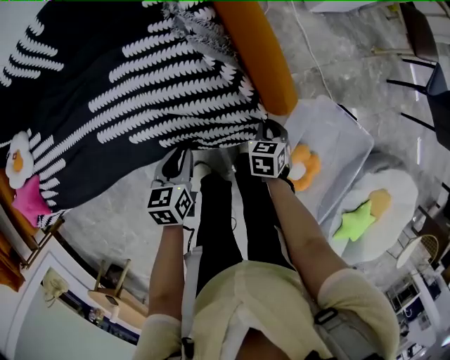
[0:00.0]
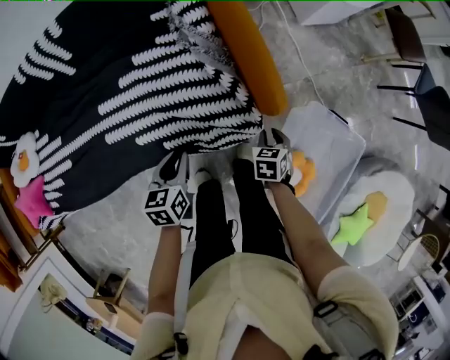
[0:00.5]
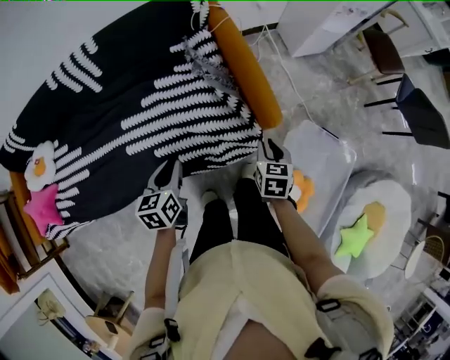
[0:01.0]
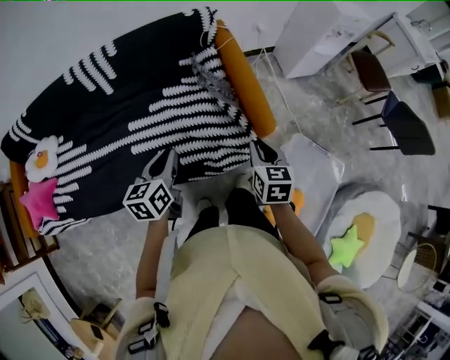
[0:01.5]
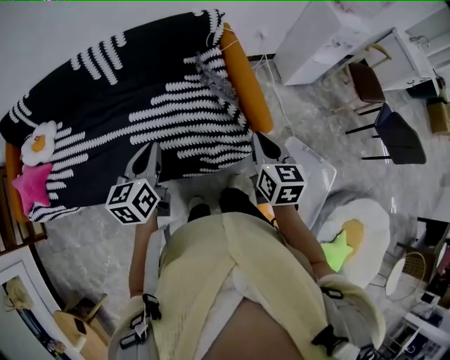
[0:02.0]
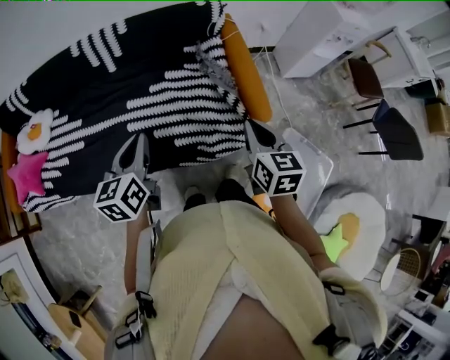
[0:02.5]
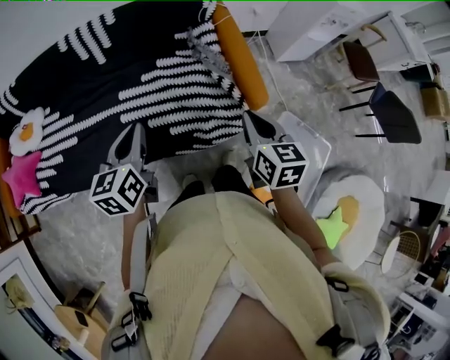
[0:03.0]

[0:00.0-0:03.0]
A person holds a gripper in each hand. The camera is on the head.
0:00.0 to 0:01.5: The grippers both shift upward by roughly 30 cm. The left gripper turns by roughly 20 degrees, while the right gripper changes its angle by roughly 30 degrees.
0:01.5 to 0:03.0: Both grippers travel together upward and to the left, roughly 10 cm.

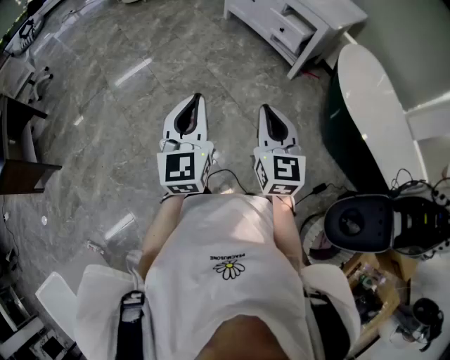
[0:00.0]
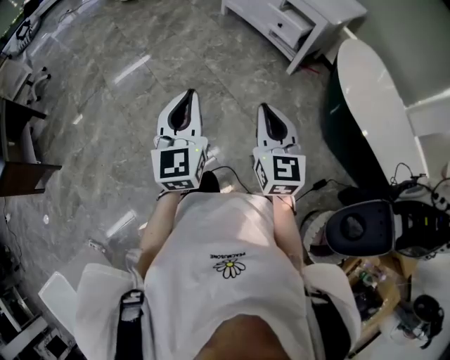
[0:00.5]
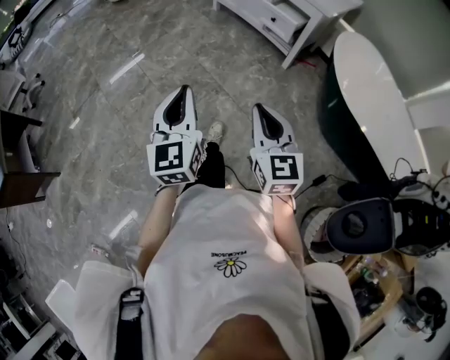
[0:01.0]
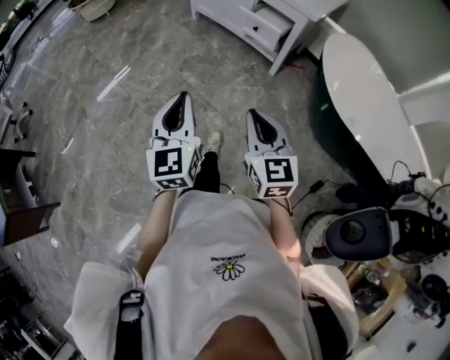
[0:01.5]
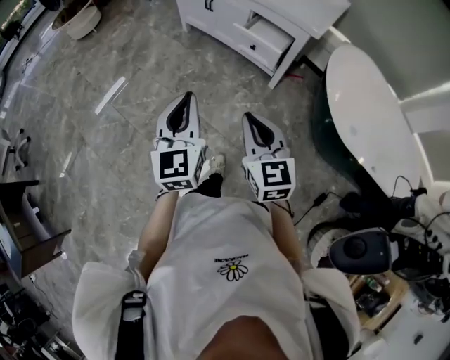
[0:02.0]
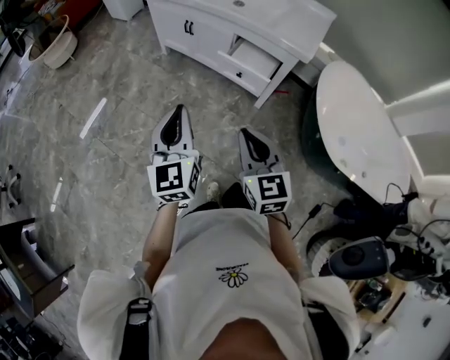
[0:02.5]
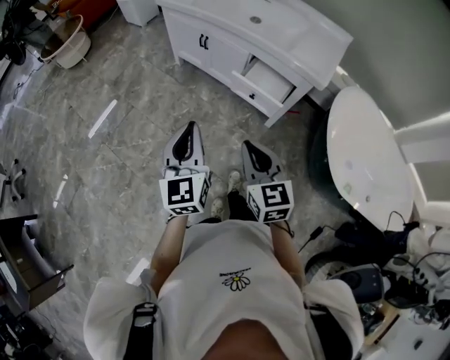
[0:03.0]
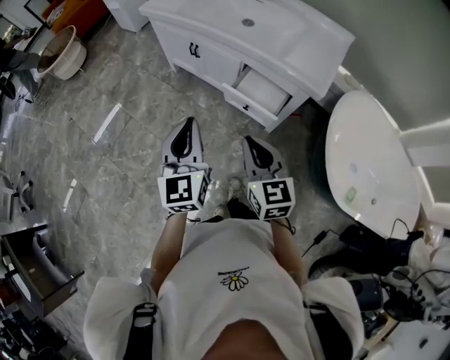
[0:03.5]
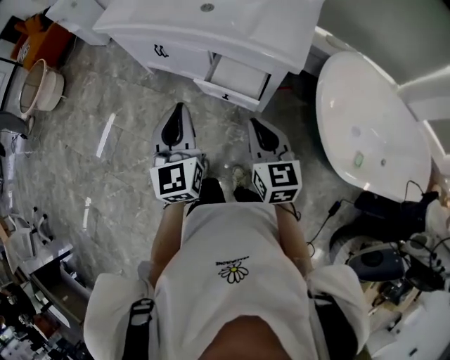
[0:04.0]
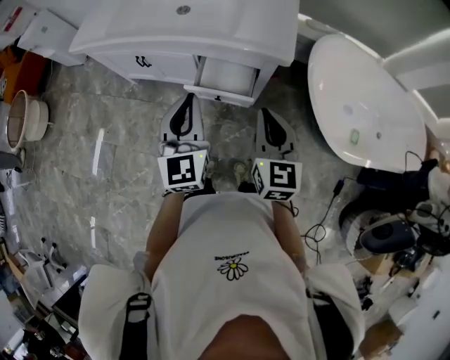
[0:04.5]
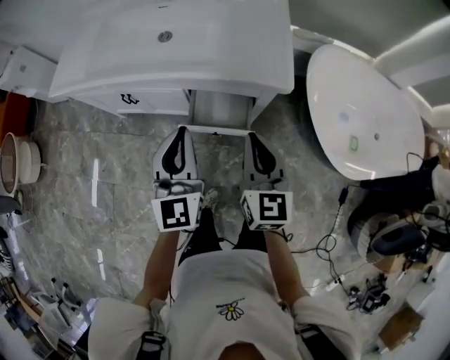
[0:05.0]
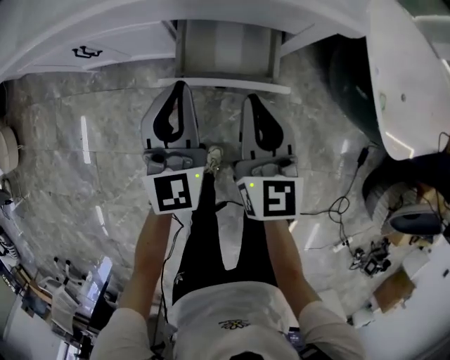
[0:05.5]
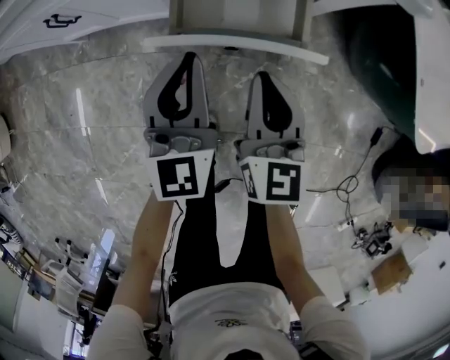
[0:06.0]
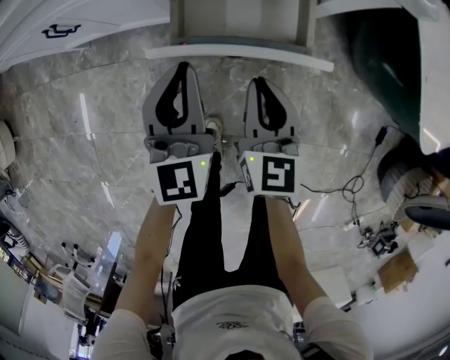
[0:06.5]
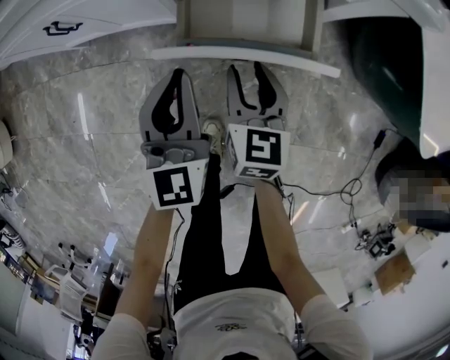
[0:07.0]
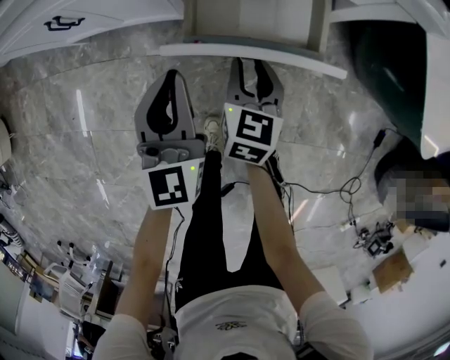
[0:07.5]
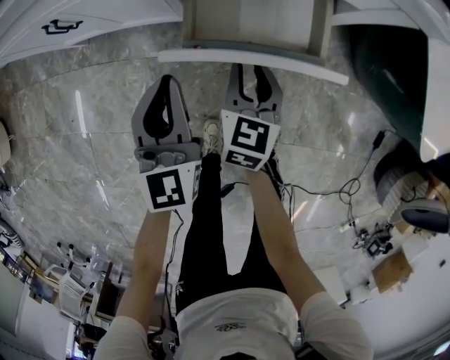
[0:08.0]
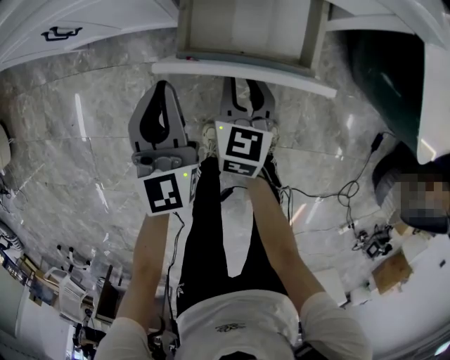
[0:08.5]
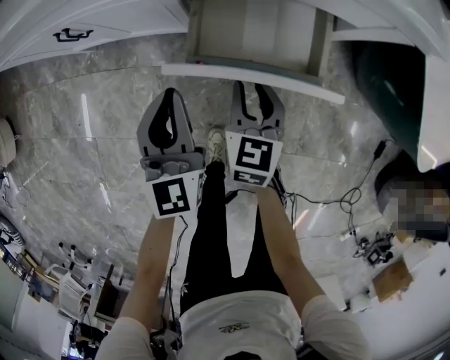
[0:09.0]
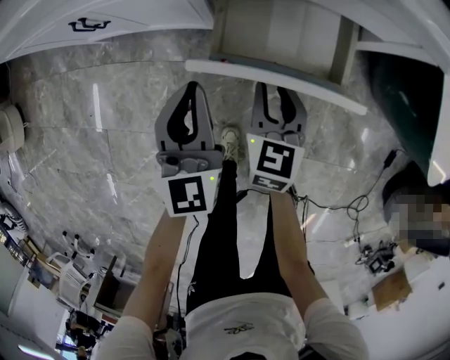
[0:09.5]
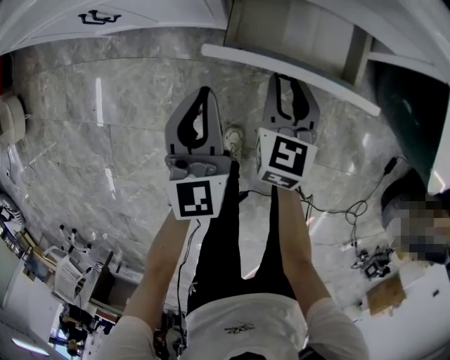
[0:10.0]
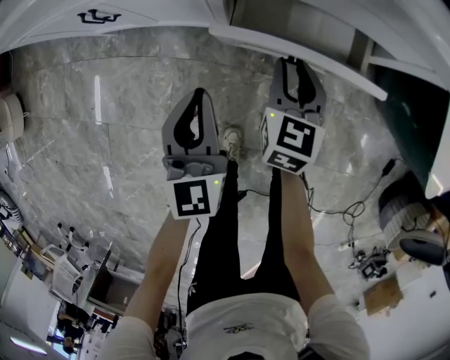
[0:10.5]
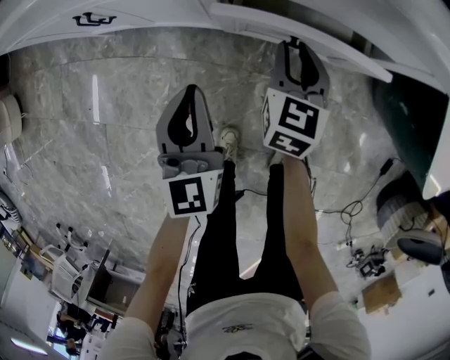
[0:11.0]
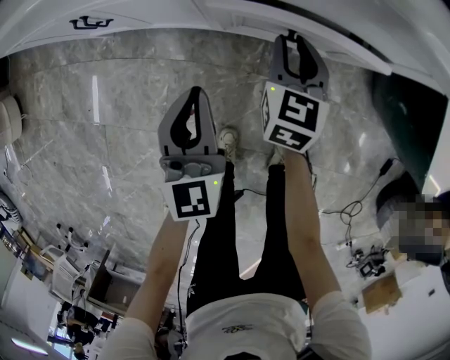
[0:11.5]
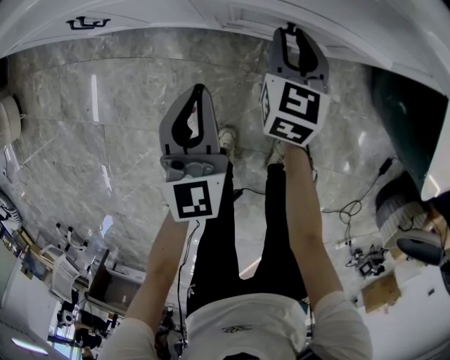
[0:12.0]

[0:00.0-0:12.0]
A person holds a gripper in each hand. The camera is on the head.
0:00.0 to 0:02.0: Both grippers travel together forward, about 35 cm.
0:02.0 to 0:04.0: The right gripper moves forward and to the right, roughly 30 cm, and swivels approximately 20 degrees. Meanwhile the left gripper heads forward, covering some 30 cm.
0:04.0 to 0:06.0: The grippers both shift downward by some 30 cm. The left gripper swivels about 30 degrees; the right gripper changes its angle by some 30 degrees.
0:06.0 to 0:08.0: The right gripper heads downward, covering roughly 10 cm, and opens up; the left gripper heads to the left, covering some 5 cm.
0:08.0 to 0:10.0: The grippers stay close to where they were, moving slightly.
0:10.0 to 0:12.0: The right gripper goes about 10 cm forward.

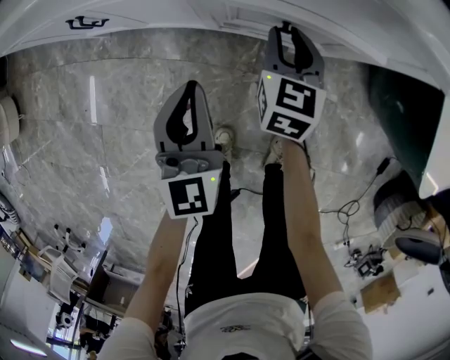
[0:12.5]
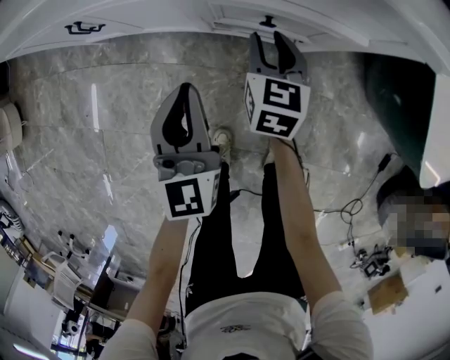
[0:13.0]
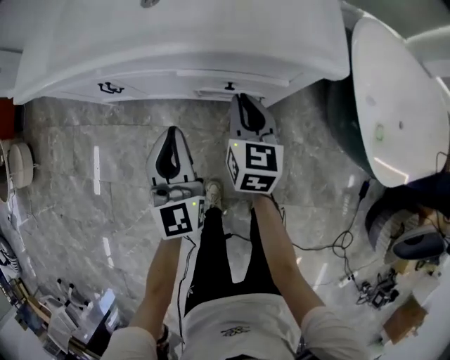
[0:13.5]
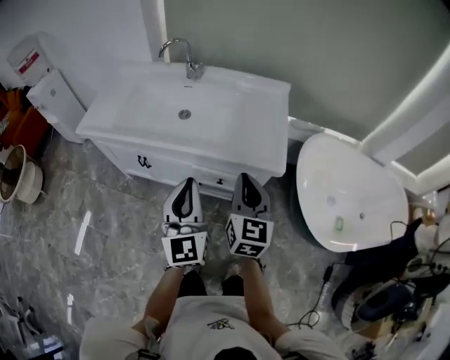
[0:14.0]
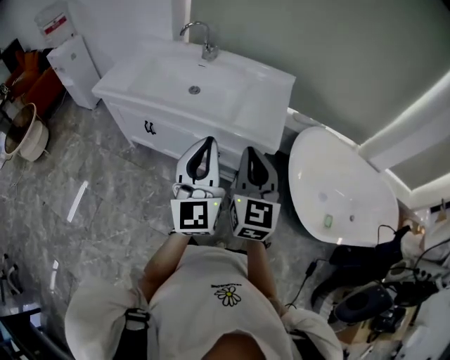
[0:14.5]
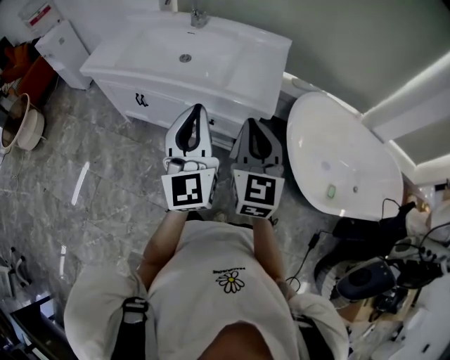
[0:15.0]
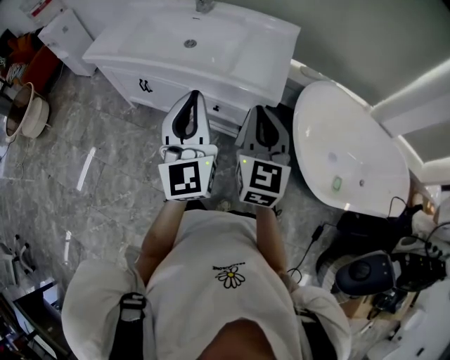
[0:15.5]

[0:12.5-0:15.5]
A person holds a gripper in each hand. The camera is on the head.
0:12.5 to 0:14.0: The grippers both shift upward by roughly 40 cm. The right gripper changes its angle by about 20 degrees, and closes.
0:14.0 to 0:15.5: The left gripper heads upward, to the right and backward, covering about 10 cm. The right gripper goes roughly 10 cm backward, to the right and upward.

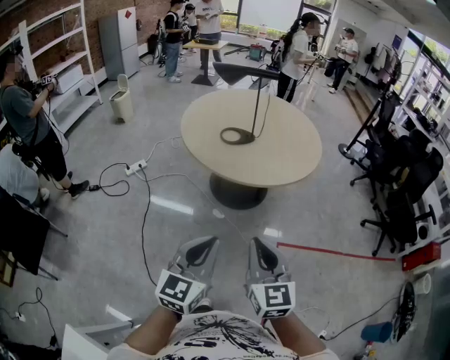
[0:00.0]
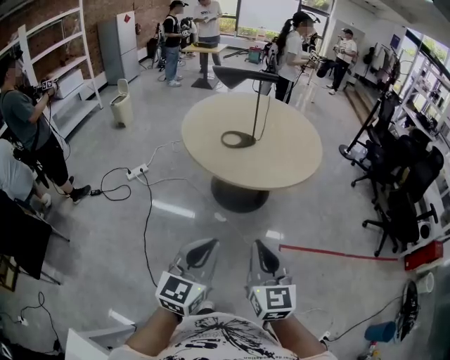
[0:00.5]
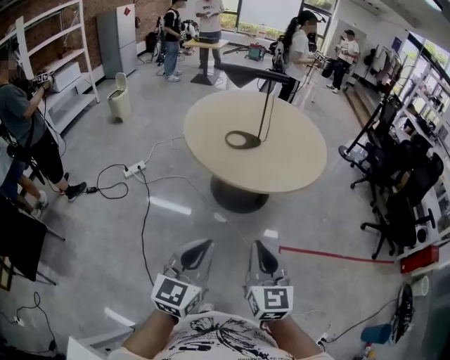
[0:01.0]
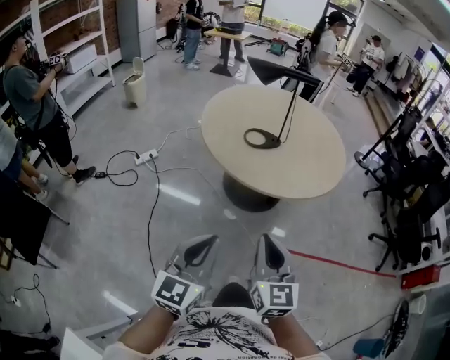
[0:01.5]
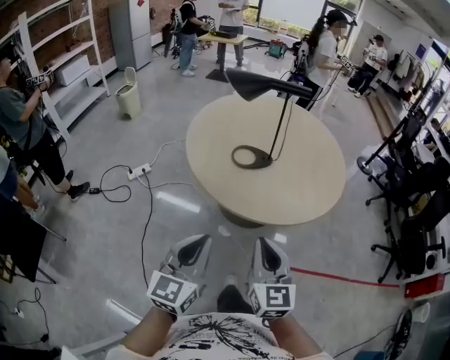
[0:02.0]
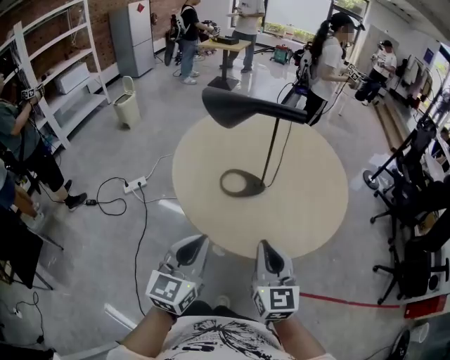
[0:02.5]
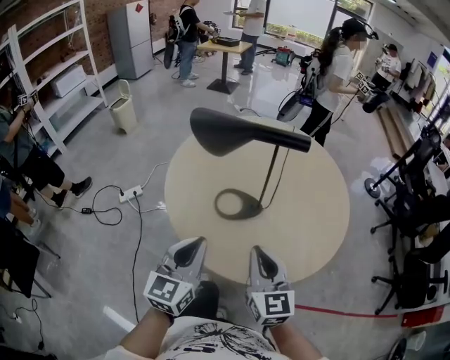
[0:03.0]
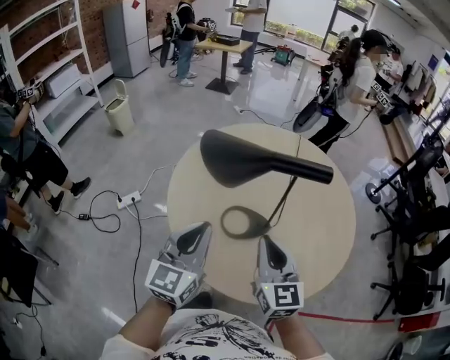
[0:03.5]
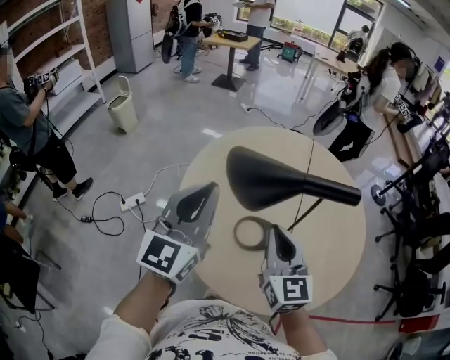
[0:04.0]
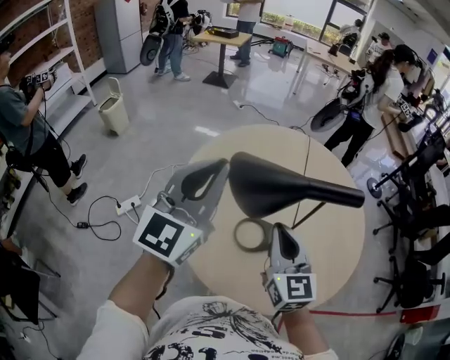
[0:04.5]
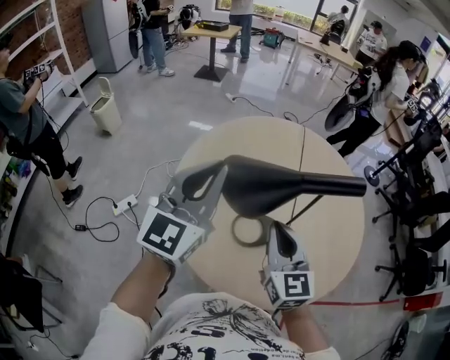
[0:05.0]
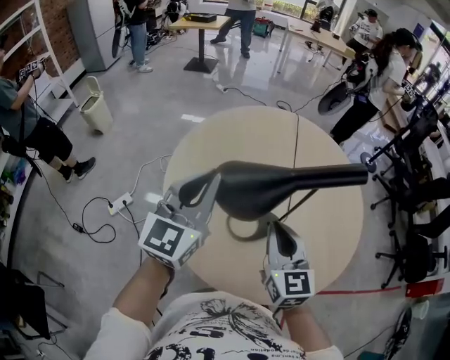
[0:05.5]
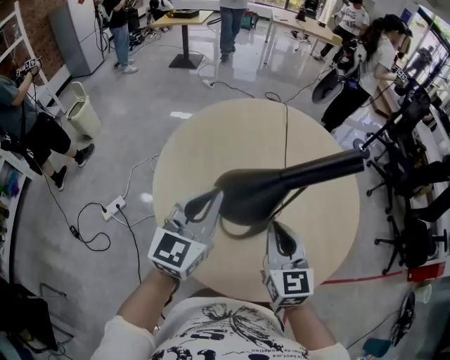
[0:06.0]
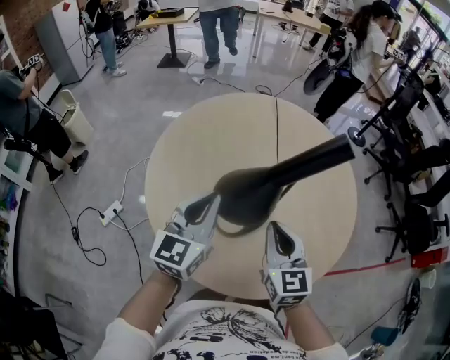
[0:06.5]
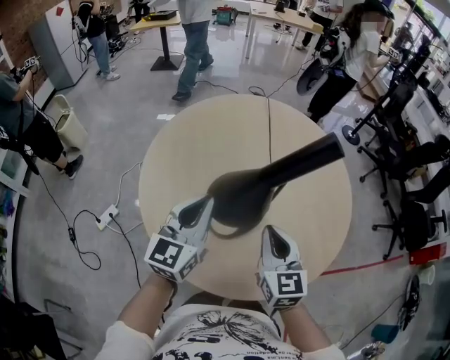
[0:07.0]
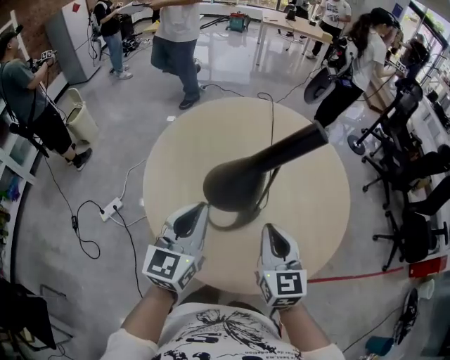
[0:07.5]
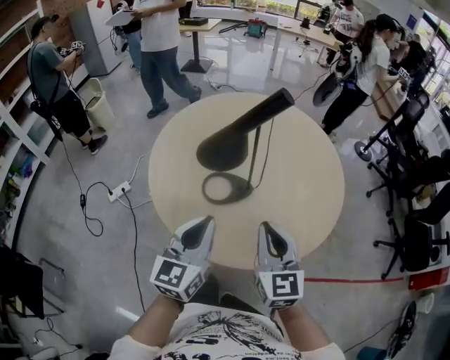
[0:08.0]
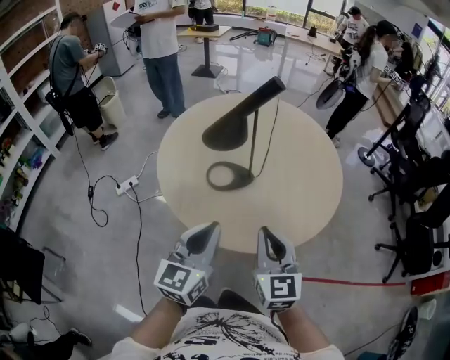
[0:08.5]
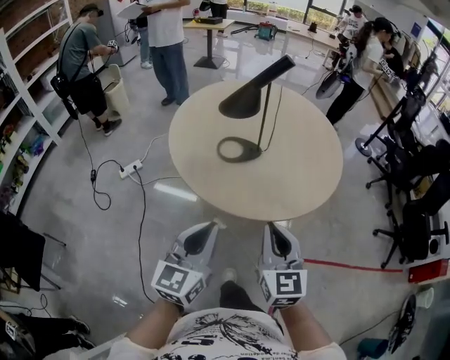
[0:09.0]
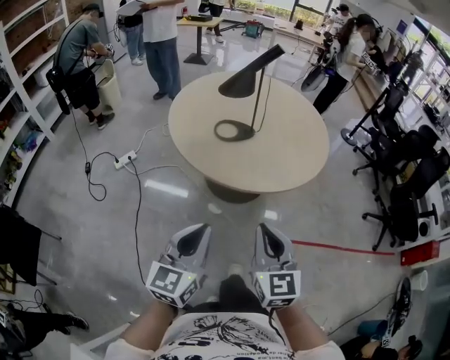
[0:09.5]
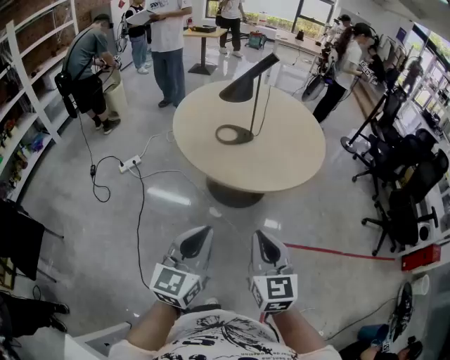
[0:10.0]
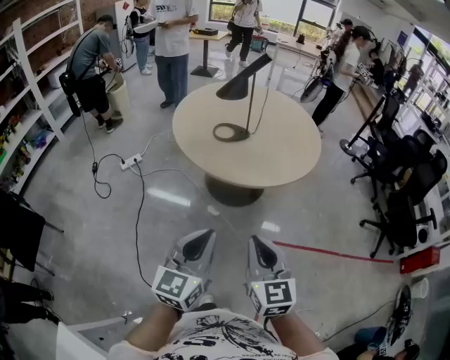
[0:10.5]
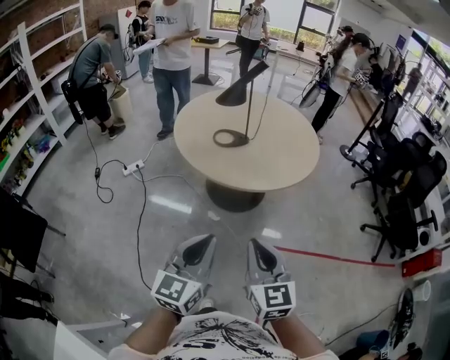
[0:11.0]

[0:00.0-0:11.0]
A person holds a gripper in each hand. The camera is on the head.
0:00.0 to 0:02.0: Both grippers travel together forward, some 20 cm.
0:02.0 to 0:03.5: Both grippers travel together forward, about 35 cm.
0:03.5 to 0:05.5: The left gripper goes approximately 15 cm forward and upward, while the right gripper goes about 5 cm forward.
0:05.5 to 0:07.5: The left gripper moves downward, to the right and backward, roughly 10 cm. The right gripper moves to the right, approximately 5 cm.
0:07.5 to 0:09.0: Both grippers move backward, approximately 30 cm.
0:09.0 to 0:11.0: The two grippers go roughly 25 cm backward.
